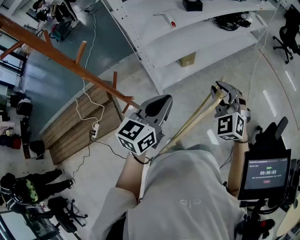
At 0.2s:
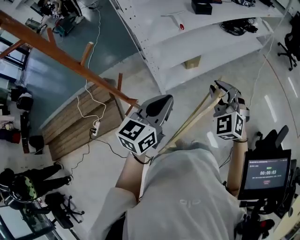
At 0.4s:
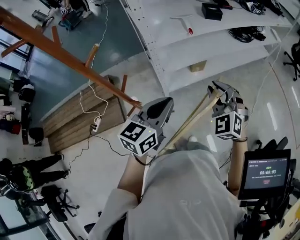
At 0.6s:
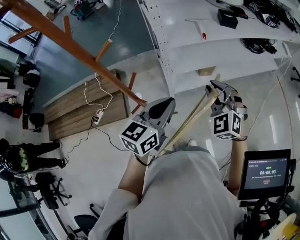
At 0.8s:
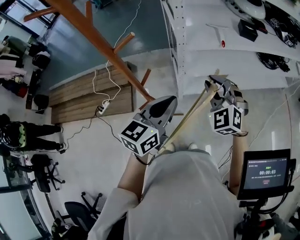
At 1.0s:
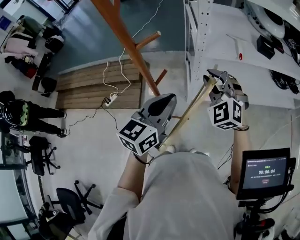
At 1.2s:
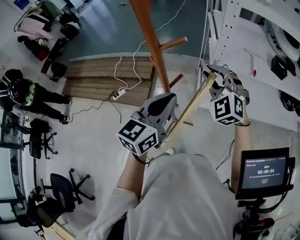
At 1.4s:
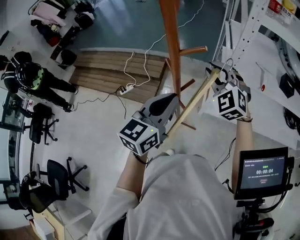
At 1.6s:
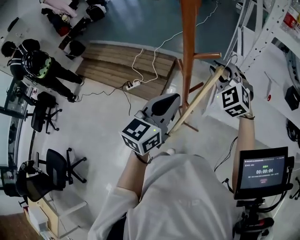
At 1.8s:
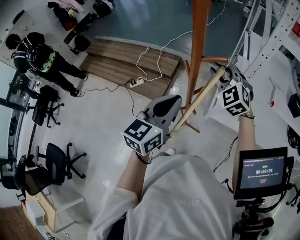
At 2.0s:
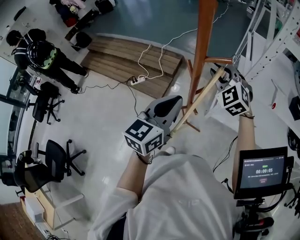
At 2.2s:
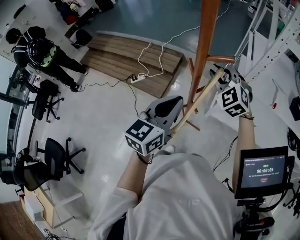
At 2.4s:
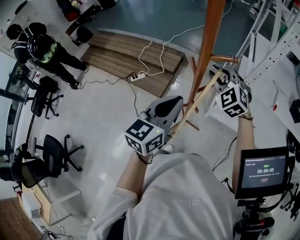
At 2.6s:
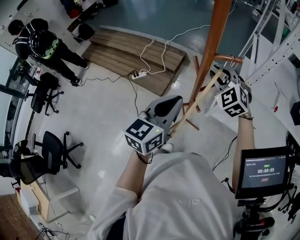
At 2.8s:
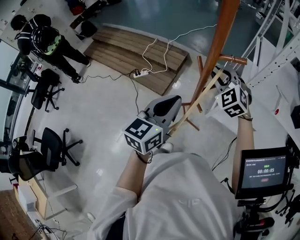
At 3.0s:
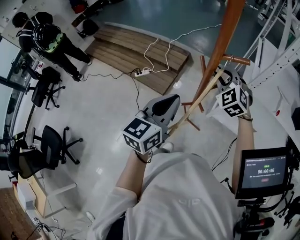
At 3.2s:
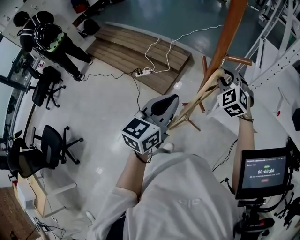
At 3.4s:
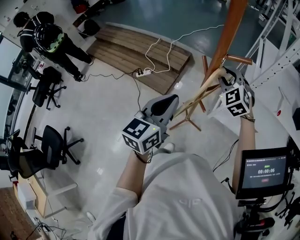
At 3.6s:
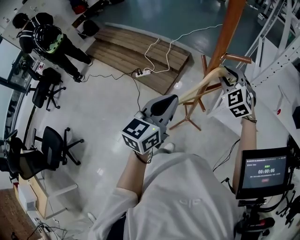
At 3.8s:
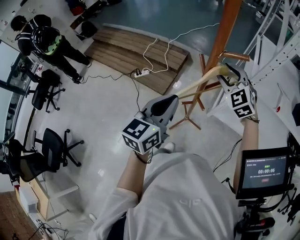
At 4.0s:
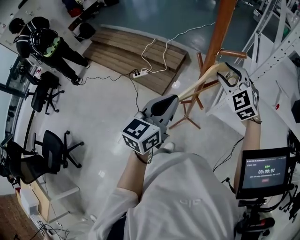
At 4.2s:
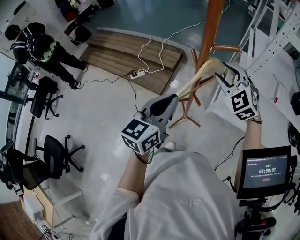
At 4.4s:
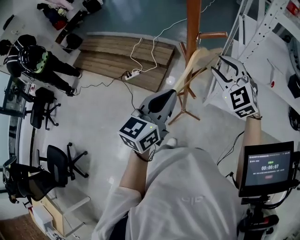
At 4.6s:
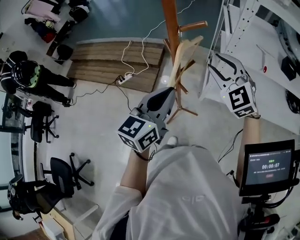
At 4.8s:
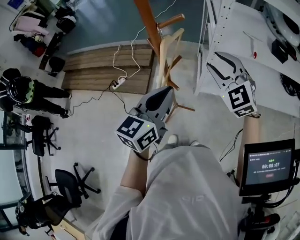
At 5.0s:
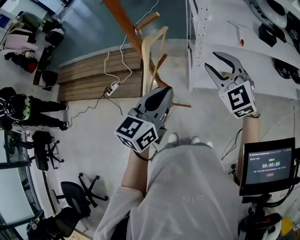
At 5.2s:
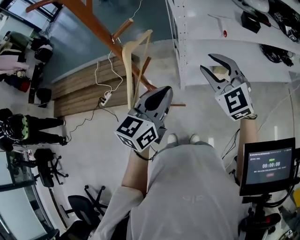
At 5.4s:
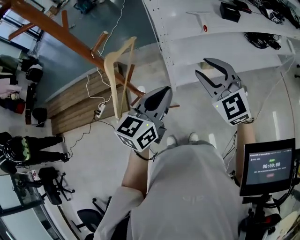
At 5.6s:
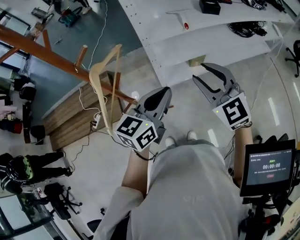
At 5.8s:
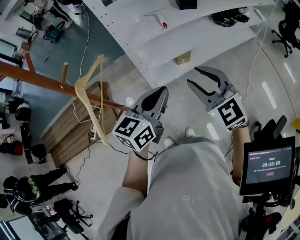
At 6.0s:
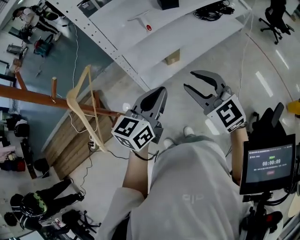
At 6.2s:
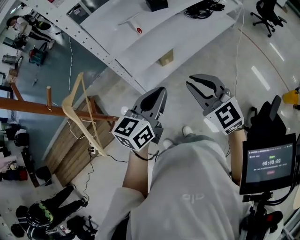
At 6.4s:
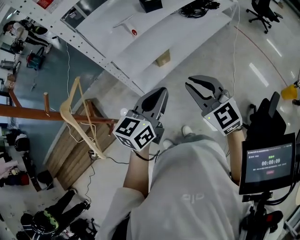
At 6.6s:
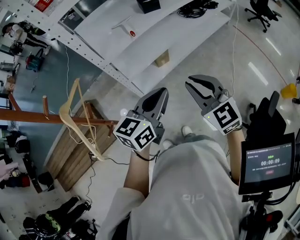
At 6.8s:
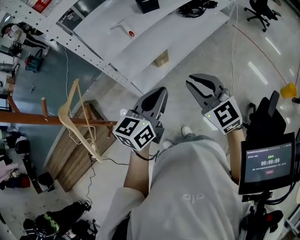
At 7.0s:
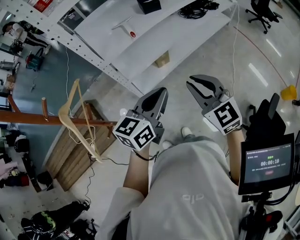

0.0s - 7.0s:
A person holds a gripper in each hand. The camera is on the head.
0.0s - 1.4s: The right gripper shifts by about 40 cm, and turns by roughly 50 degrees, while the left gripper ends up approximately 25 cm from where it was, and turns by about 40 degrees.
1.4s - 2.8s: Both grippers move to the left, approximately 10 cm.
2.8s - 4.2s: The right gripper moves approximately 5 cm.
4.2s - 5.6s: The right gripper shifts by some 30 cm, and swivels some 40 degrees; the left gripper shifts by about 25 cm, and rotates about 40 degrees.
5.6s - 7.0s: Both grippers move to the right, roughly 10 cm. The right gripper changes its angle by approximately 20 degrees, and closes.

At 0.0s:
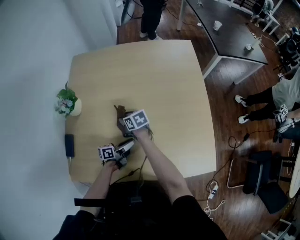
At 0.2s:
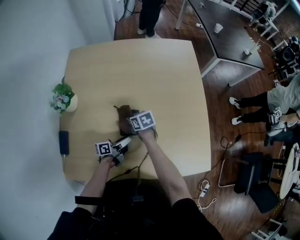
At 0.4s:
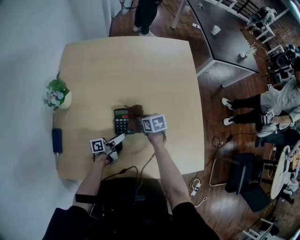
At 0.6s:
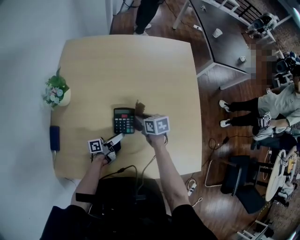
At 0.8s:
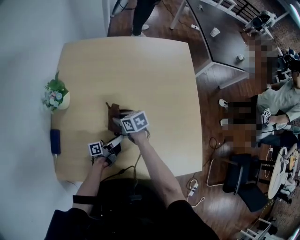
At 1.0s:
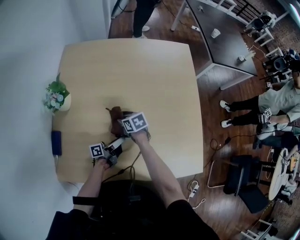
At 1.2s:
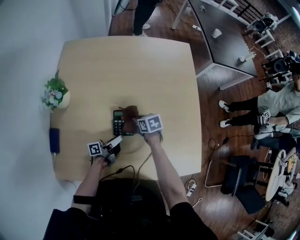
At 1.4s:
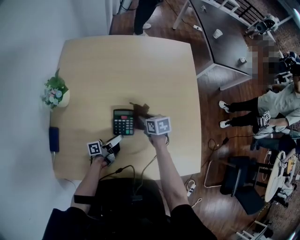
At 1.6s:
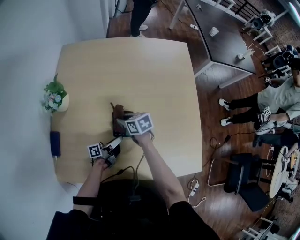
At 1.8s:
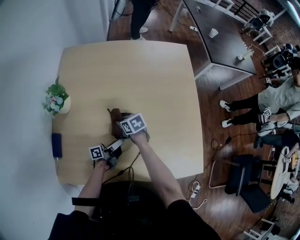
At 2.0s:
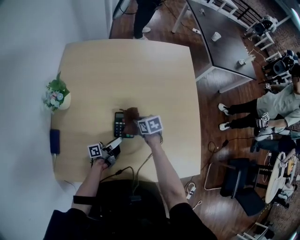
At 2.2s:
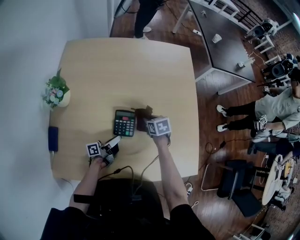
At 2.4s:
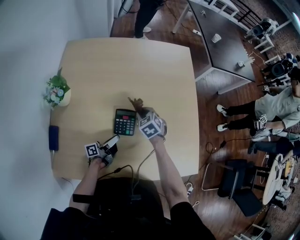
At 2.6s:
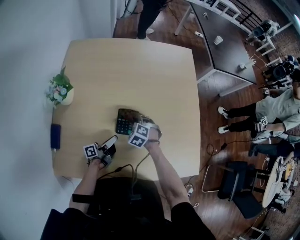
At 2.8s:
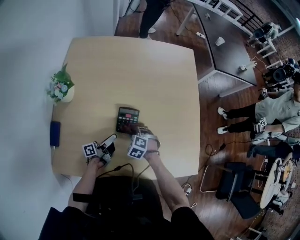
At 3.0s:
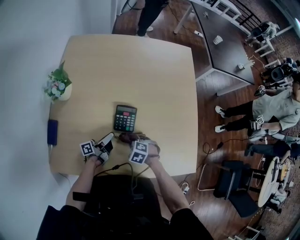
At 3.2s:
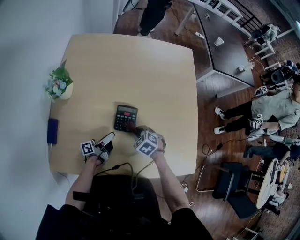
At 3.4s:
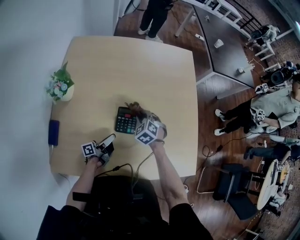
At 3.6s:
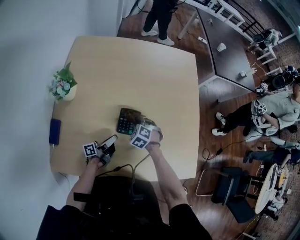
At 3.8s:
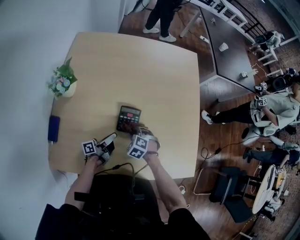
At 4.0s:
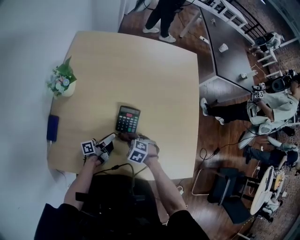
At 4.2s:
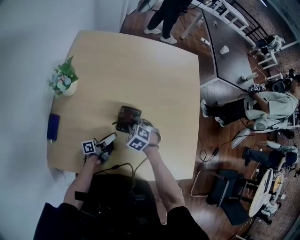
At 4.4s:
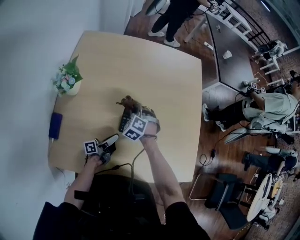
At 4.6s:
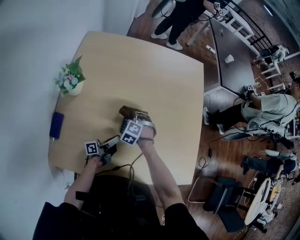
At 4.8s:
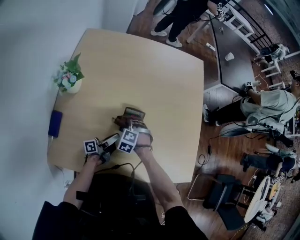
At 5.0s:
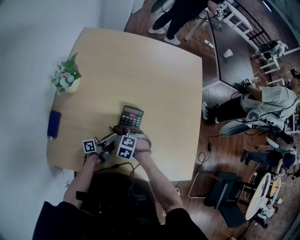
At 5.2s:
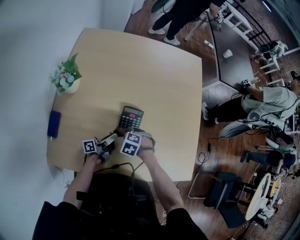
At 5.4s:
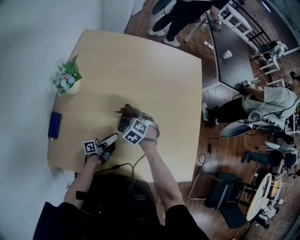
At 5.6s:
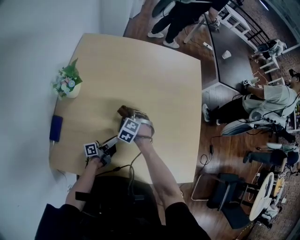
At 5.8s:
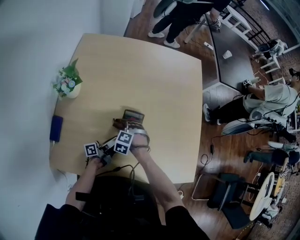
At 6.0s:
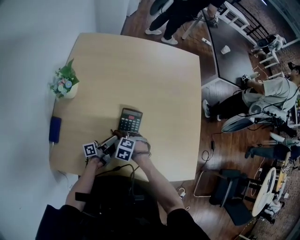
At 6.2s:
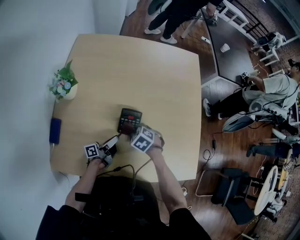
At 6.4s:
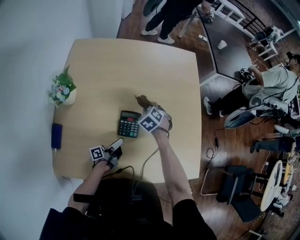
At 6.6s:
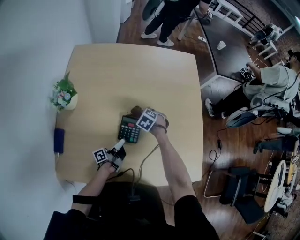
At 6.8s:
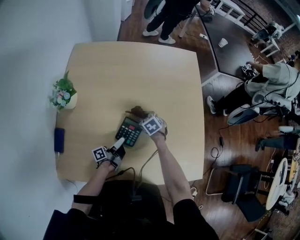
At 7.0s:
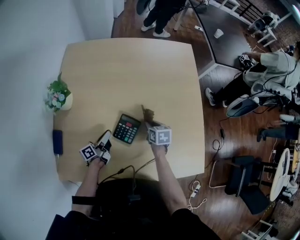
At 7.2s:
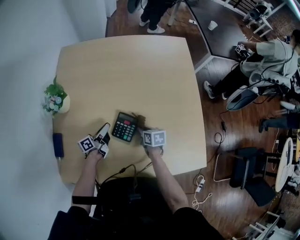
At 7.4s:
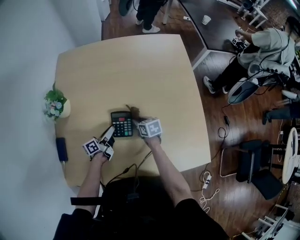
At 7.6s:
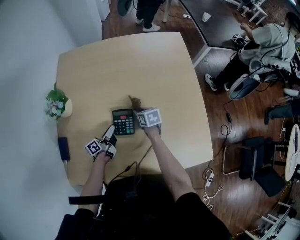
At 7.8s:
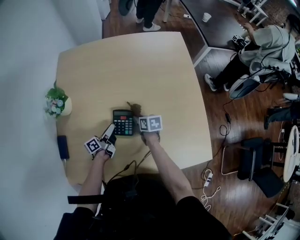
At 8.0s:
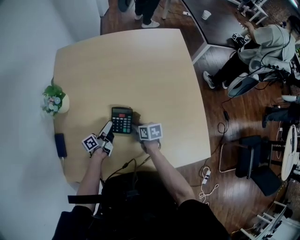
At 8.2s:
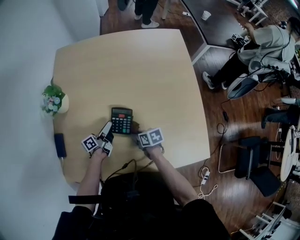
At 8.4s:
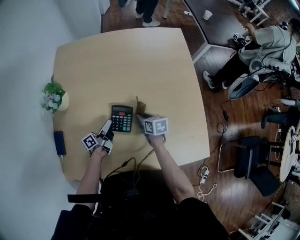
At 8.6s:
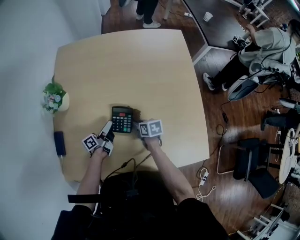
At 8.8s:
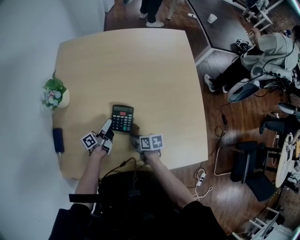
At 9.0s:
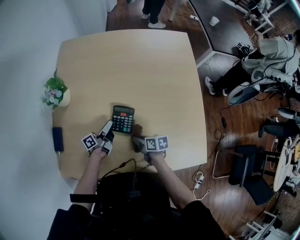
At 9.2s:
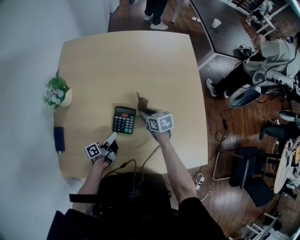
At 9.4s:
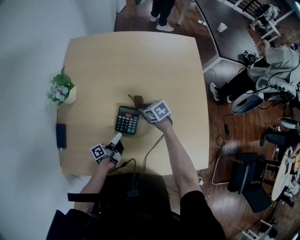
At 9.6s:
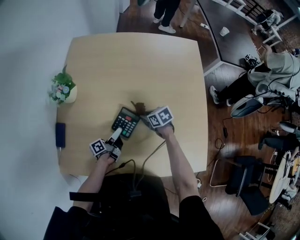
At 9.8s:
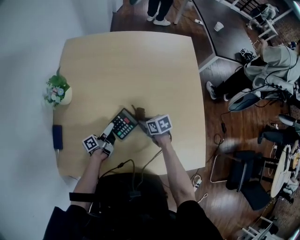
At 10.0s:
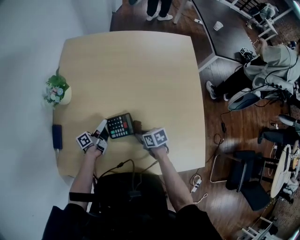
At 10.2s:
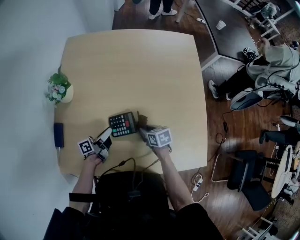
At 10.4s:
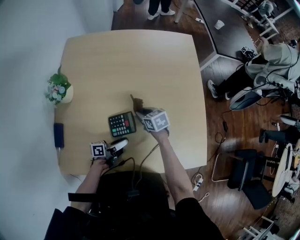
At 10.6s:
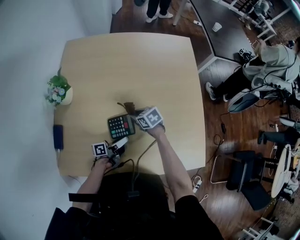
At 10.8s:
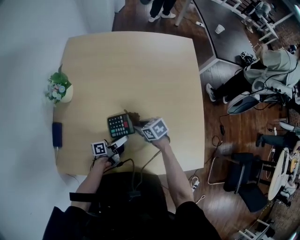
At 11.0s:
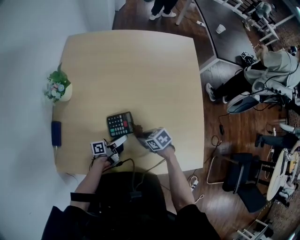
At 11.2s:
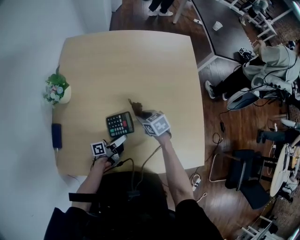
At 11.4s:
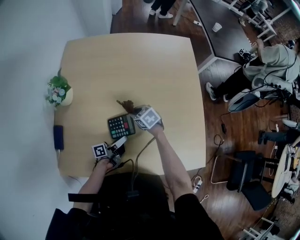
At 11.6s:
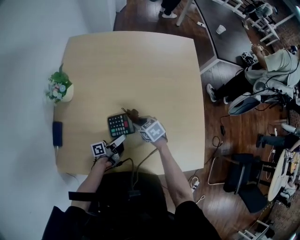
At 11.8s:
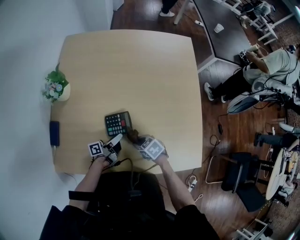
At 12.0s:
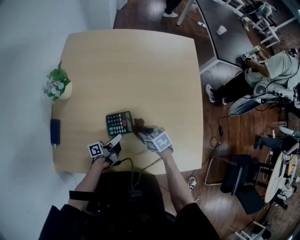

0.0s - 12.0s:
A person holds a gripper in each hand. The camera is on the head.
0.0s - 1.6s: The right gripper moves left and right over about 15 cm, changing direction 3 times.
1.6s - 3.0s: The right gripper heads backward and downward, covering approximately 20 cm, and rotates around the line of its fingers by approximately 50 degrees, counterclockwise from behind.
3.0s - 4.4s: The right gripper goes up and down, roughly 10 cm each way, reversing 2 times, and rotates approximately 30 degrees.
4.4s - 6.0s: The right gripper swings up and down, some 10 cm each way, with 2 reversals, and rotates about 30 degrees.
6.0s - 7.6s: The left gripper changes place by about 5 cm. The right gripper moves approximately 10 cm upward and comes back, and rotates around the line of its fingers by roughly 70 degrees, clockwise from behind.
7.6s - 9.0s: The right gripper moves forward and backward over some 15 cm, changing direction 2 times, and turns by roughly 20 degrees.
9.0s - 10.4s: The right gripper swings forward and backward, approximately 15 cm each way, with 2 reversals, and changes its angle by some 30 degrees. Meanwhile the left gripper moves forward and backward over some 15 cm, changing direction 2 times, and rotates approximately 20 degrees.

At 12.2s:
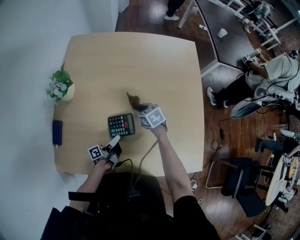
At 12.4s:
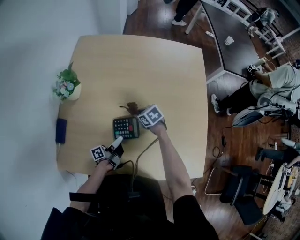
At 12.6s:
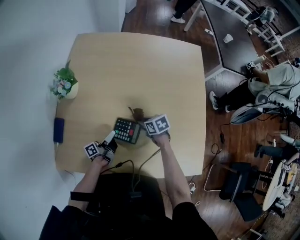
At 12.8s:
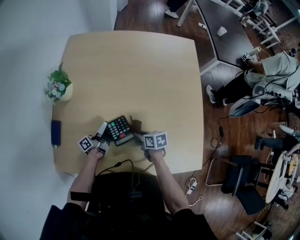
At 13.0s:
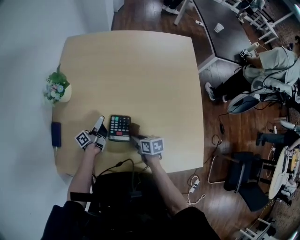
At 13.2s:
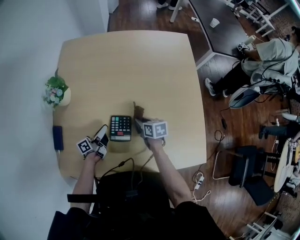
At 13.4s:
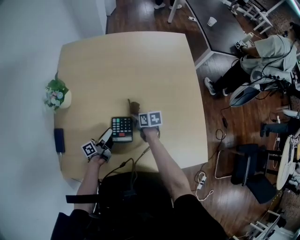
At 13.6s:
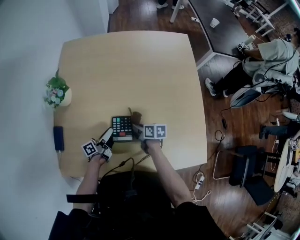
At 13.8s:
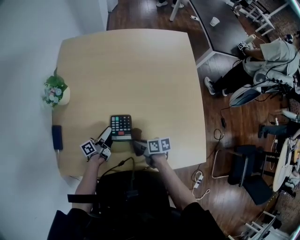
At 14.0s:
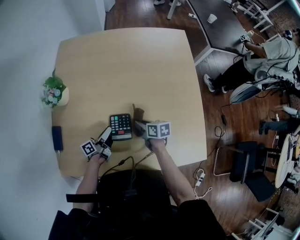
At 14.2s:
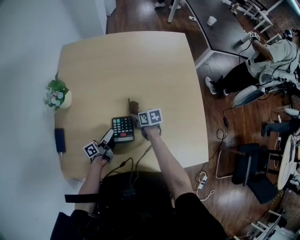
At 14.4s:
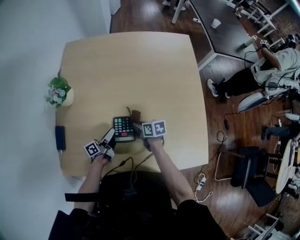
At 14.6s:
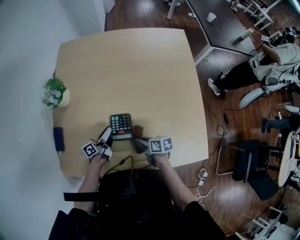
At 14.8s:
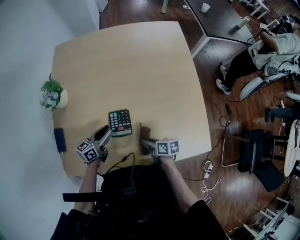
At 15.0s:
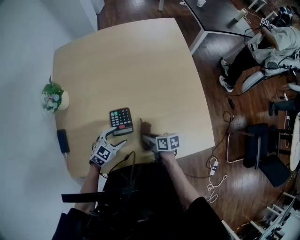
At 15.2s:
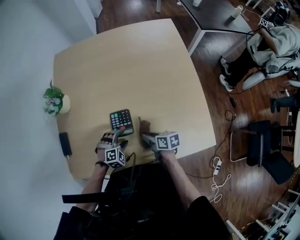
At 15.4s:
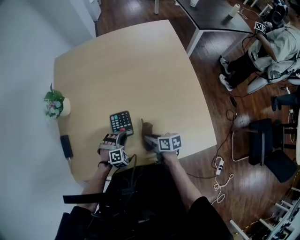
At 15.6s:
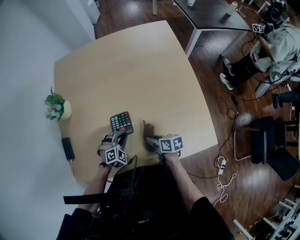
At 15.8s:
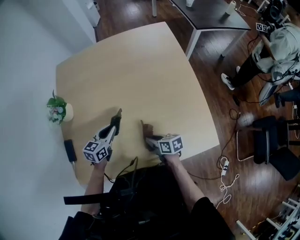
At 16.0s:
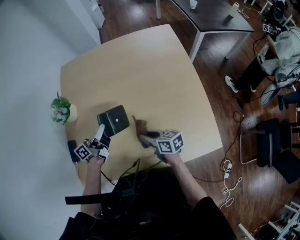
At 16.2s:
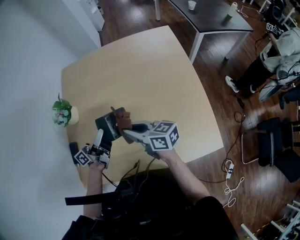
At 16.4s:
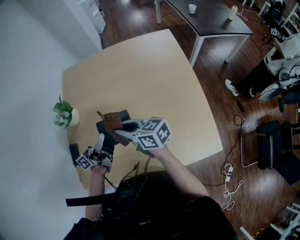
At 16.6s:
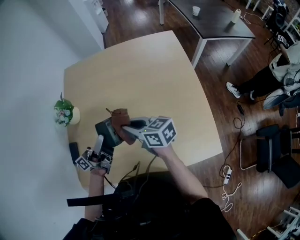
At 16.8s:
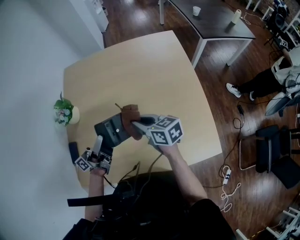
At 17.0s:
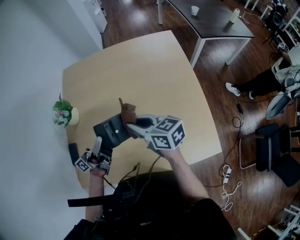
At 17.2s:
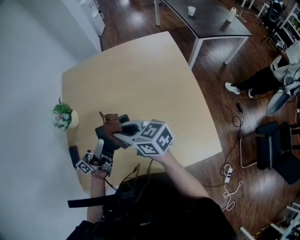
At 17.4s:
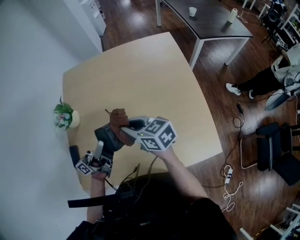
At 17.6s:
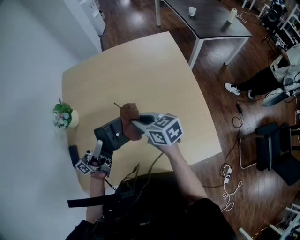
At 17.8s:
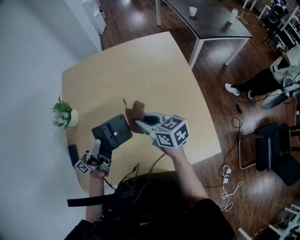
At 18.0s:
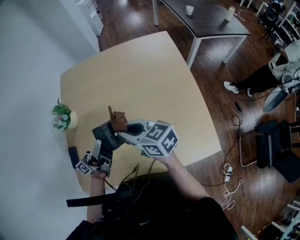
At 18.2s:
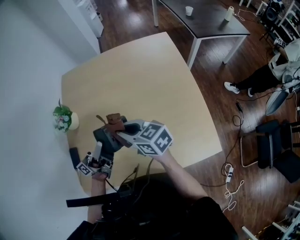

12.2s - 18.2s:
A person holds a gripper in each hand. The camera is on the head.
12.2s - 13.8s: The right gripper swings forward and backward, roughly 20 cm each way, with 2 reversals, and rotates around the line of its fingers by some 50 degrees, clockwise from behind. Meanwhile the left gripper is displaced forward by about 5 cm.
13.8s - 15.2s: The right gripper travels forward and back again, about 15 cm each way. The left gripper is displaced backward and to the right by approximately 15 cm, twists about 110 degrees clockwise, seen from behind, and opens up.
15.2s - 16.6s: The left gripper is displaced upward by roughly 25 cm, tilts its fingers approximately 80 degrees upward, and closes its fingers, while the right gripper goes roughly 25 cm upward and forward, and swivels some 30 degrees.
16.6s - 18.2s: The right gripper moves left and right over about 10 cm, changing direction 3 times.
